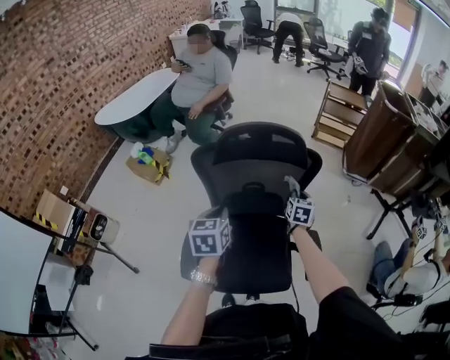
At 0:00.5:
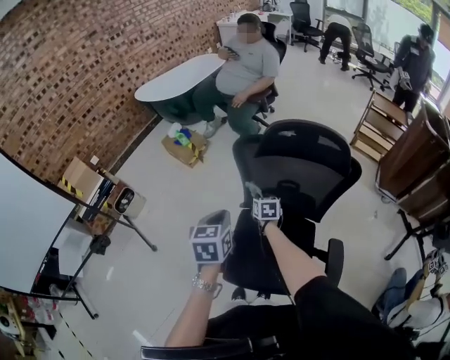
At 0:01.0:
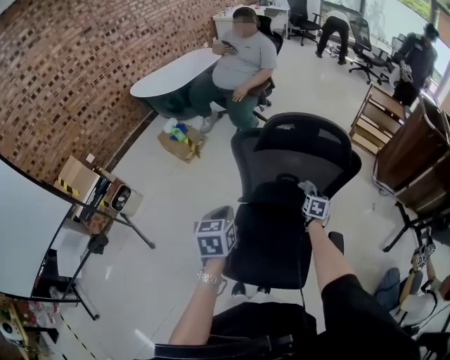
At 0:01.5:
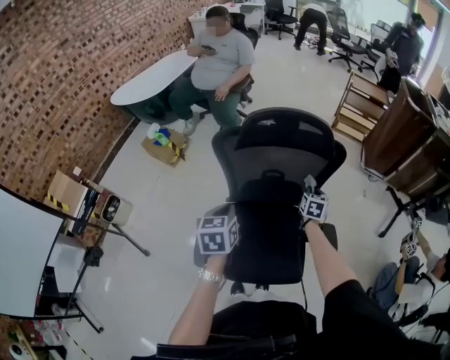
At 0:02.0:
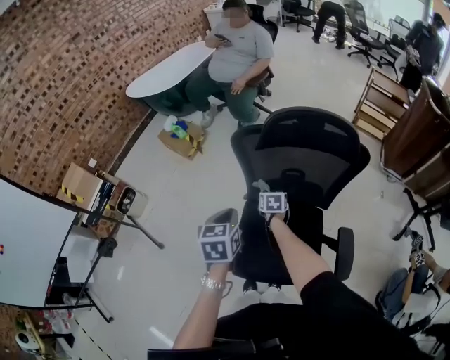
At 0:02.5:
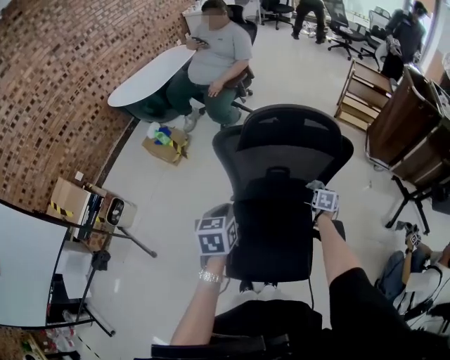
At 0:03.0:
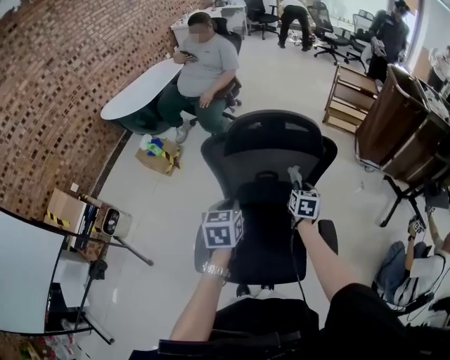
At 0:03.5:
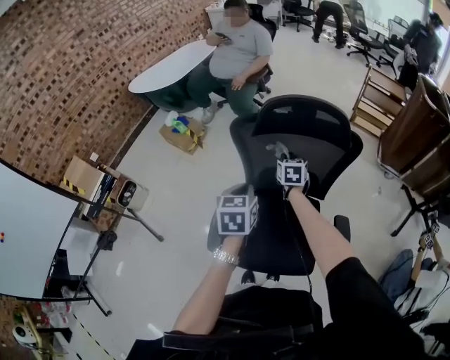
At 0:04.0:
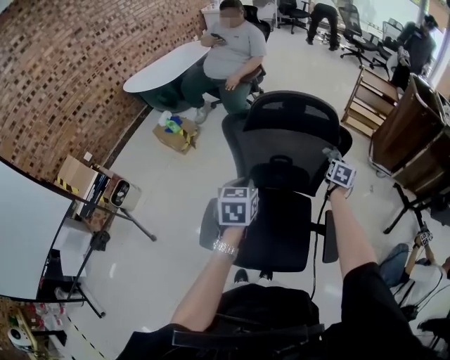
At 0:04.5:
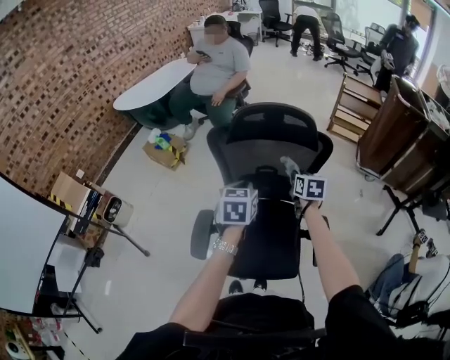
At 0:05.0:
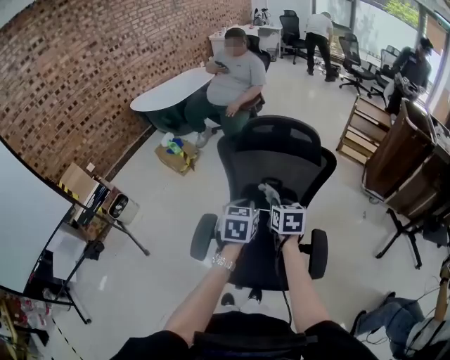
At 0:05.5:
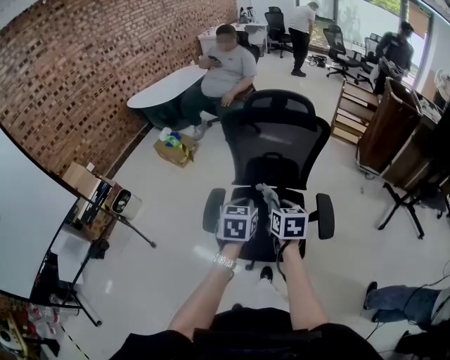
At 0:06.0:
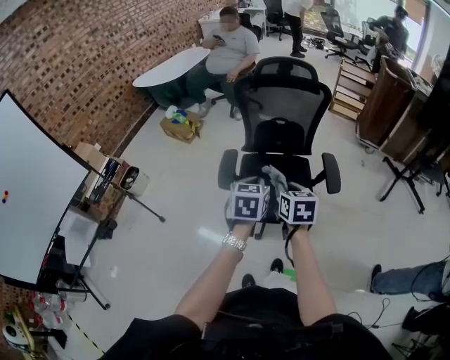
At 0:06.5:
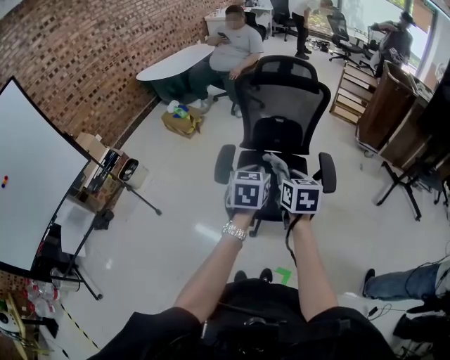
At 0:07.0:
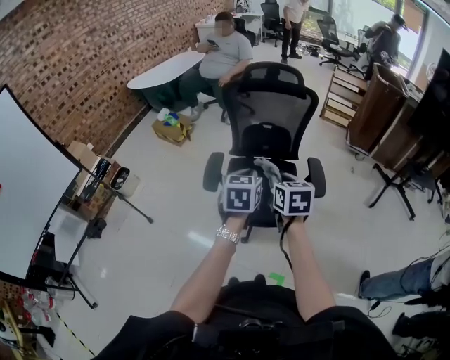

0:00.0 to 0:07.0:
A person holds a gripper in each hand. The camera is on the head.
0:00.0 to 0:02.0: The left gripper moves left and right over roughly 10 cm, changing direction 2 times, while the right gripper swings left and right, roughly 30 cm each way, with 2 reversals, and rotates about 30 degrees.
0:02.0 to 0:03.5: The left gripper moves to the right, some 5 cm; the right gripper is displaced upward by roughly 15 cm, and travels to the right and back again, roughly 30 cm each way.
0:03.5 to 0:05.0: The right gripper is displaced backward and upward by some 20 cm, and travels to the right and back again, roughly 25 cm each way; the left gripper goes some 5 cm to the right.
0:05.0 to 0:07.0: Both grippers travel together backward, about 30 cm.

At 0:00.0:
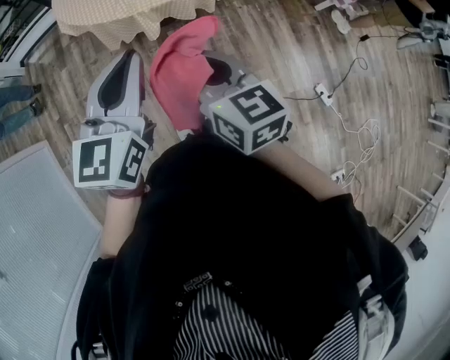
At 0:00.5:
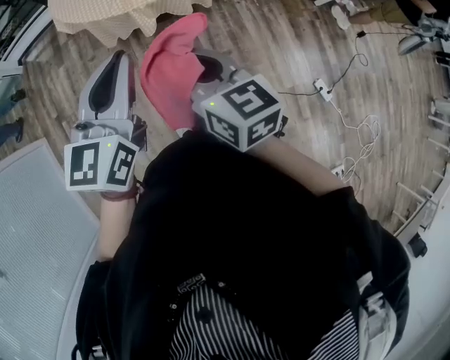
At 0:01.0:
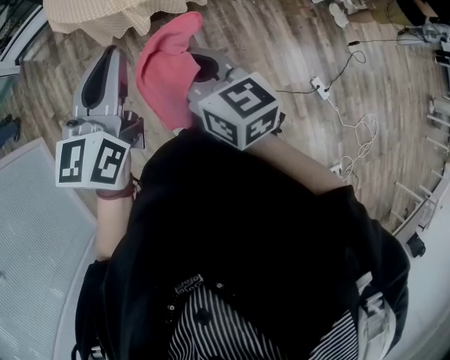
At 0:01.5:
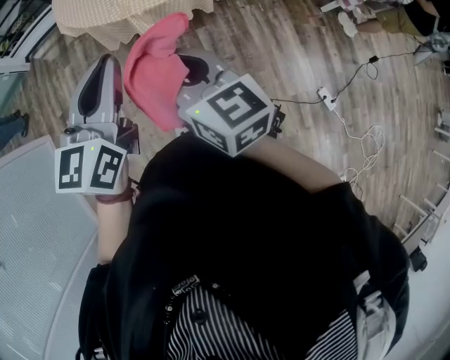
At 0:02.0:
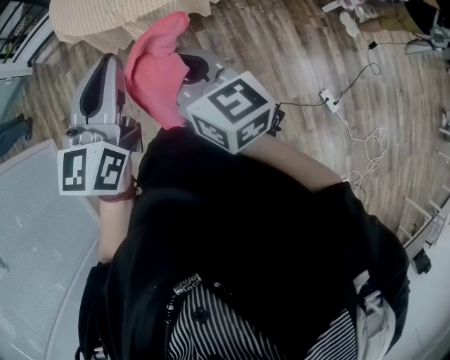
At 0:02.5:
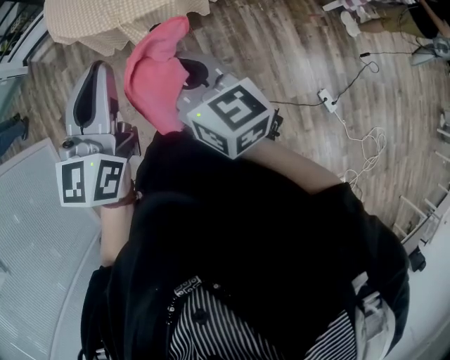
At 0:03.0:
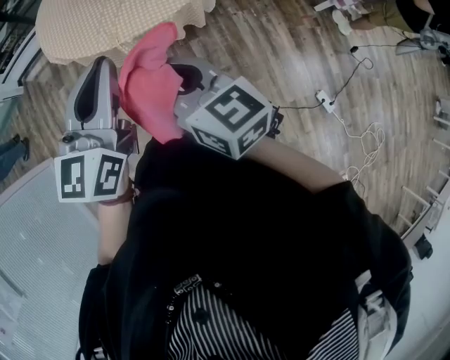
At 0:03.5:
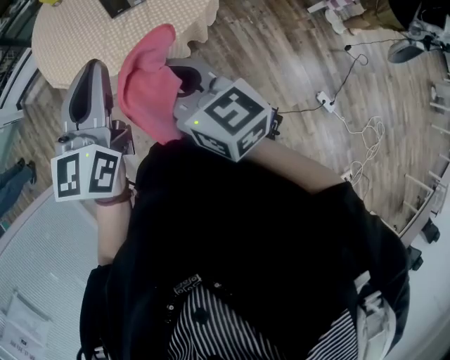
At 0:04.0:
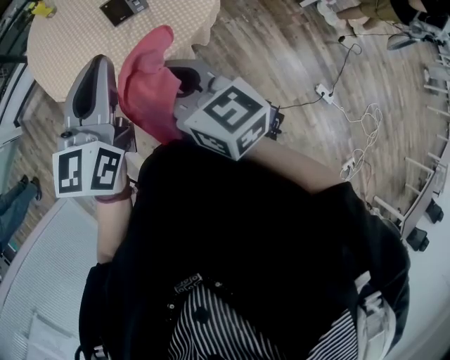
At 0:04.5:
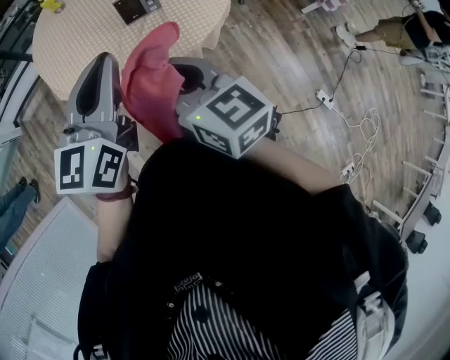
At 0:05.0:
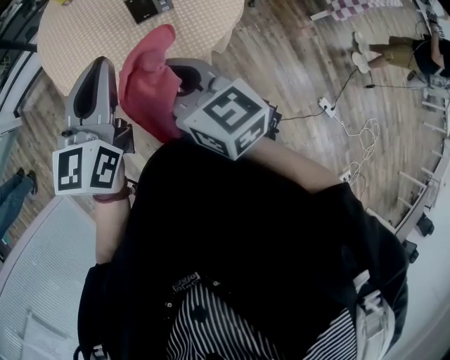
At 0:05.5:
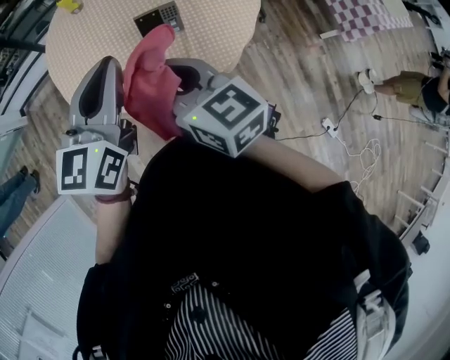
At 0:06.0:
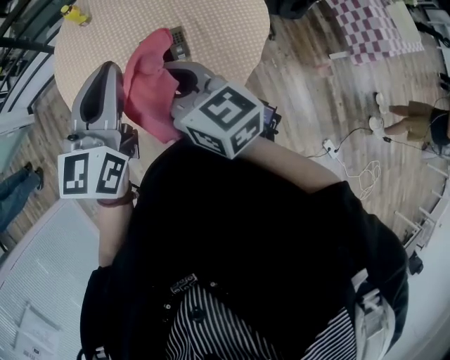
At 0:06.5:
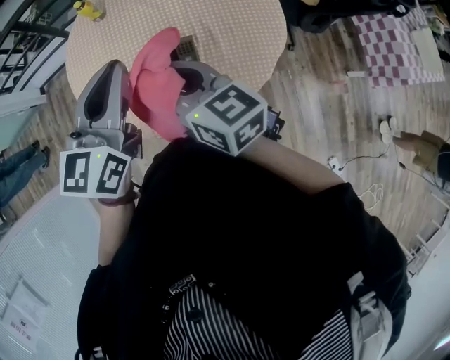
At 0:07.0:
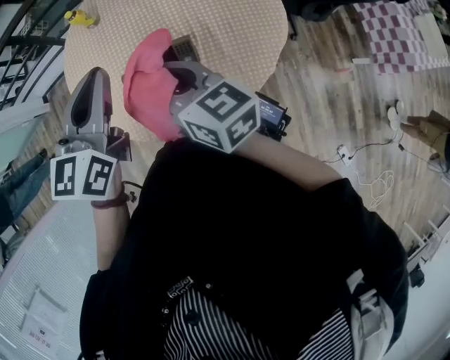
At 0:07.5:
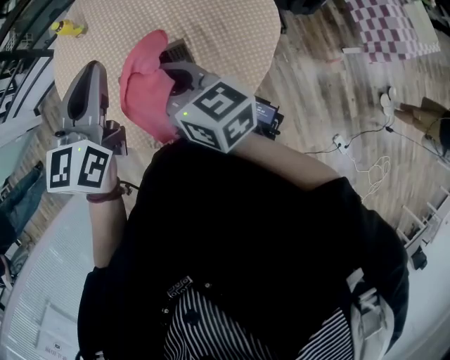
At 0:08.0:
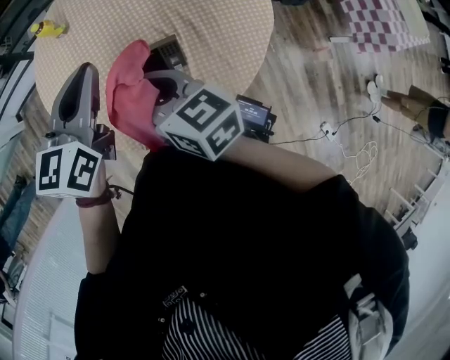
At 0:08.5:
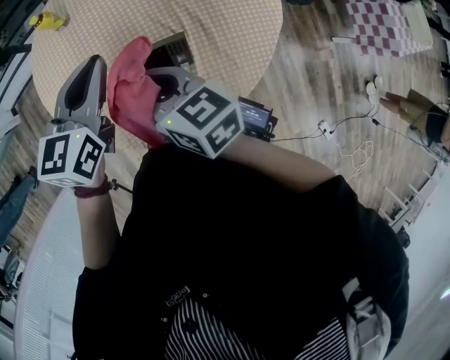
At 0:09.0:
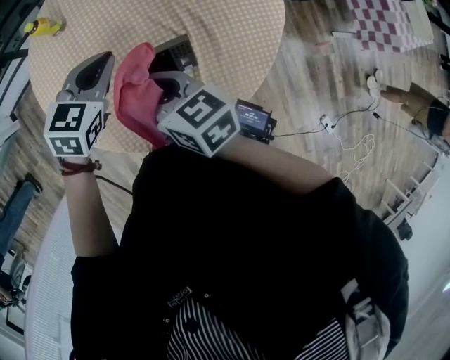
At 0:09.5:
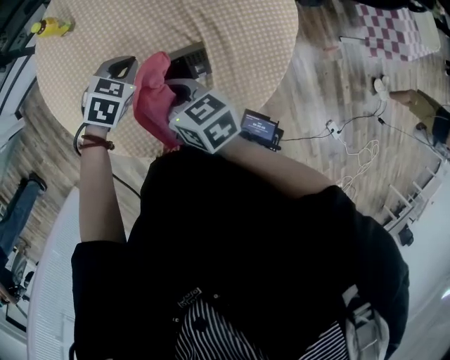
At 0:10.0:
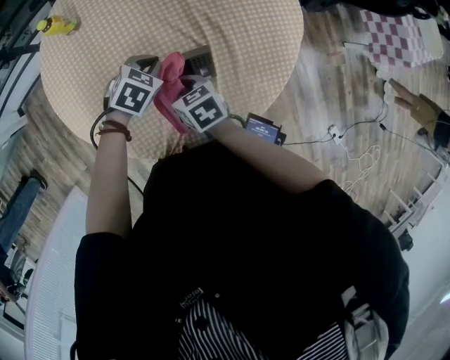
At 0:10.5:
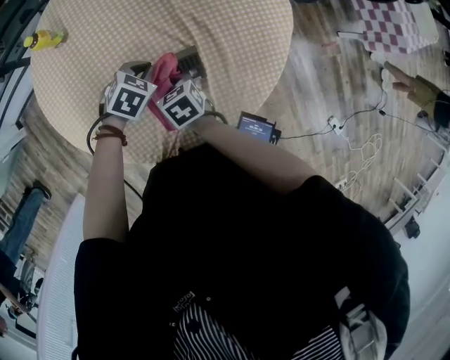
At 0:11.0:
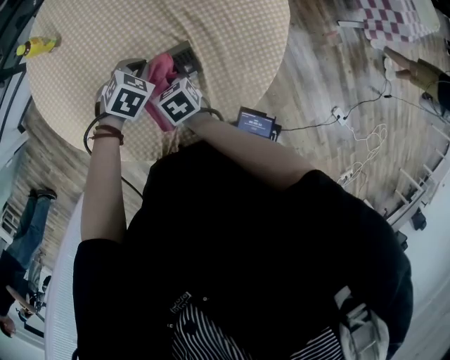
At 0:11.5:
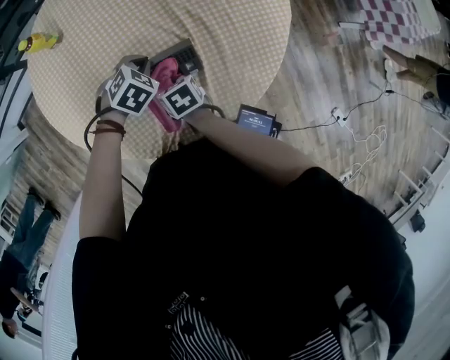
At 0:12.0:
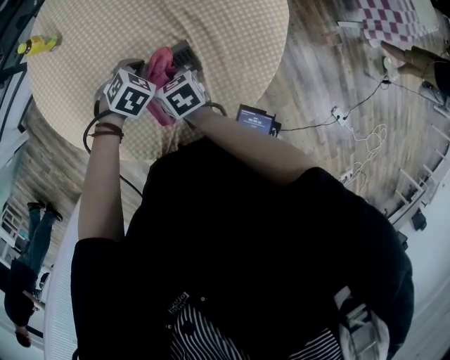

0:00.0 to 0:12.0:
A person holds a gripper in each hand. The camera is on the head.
0:00.0 to 0:02.0: The grippers both shift to the right by some 10 cm.
0:02.0 to 0:04.0: Both grippers travel together forward, some 30 cm.
0:04.0 to 0:06.0: The grippers both shift forward by about 25 cm.
0:06.0 to 0:08.0: The two grippers go approximately 20 cm forward and downward.
0:08.0 to 0:10.0: Both grippers move downward, approximately 25 cm. The left gripper angles its fingers downward, by approximately 40 degrees. Meanwhile the right gripper swivels about 30 degrees.

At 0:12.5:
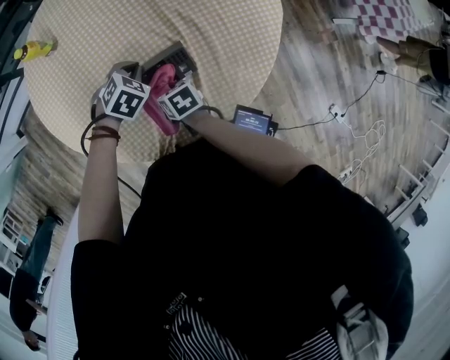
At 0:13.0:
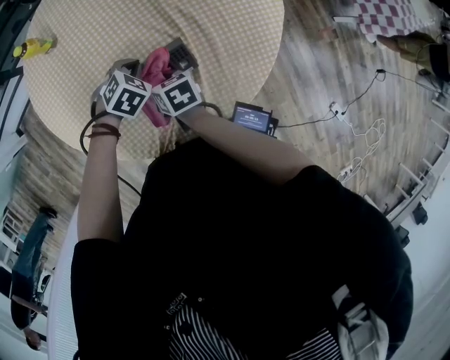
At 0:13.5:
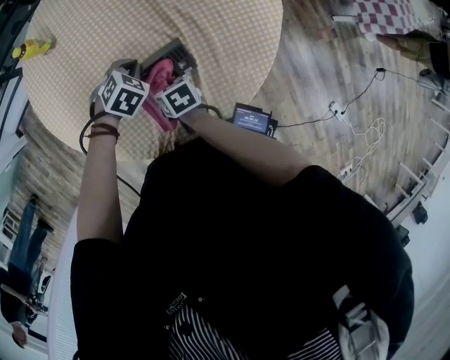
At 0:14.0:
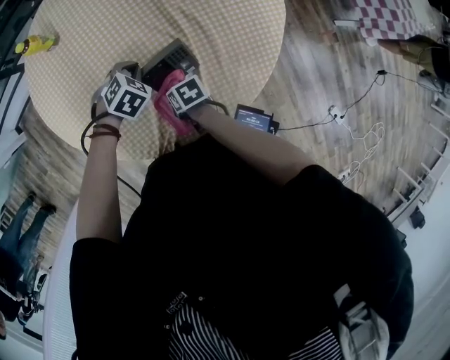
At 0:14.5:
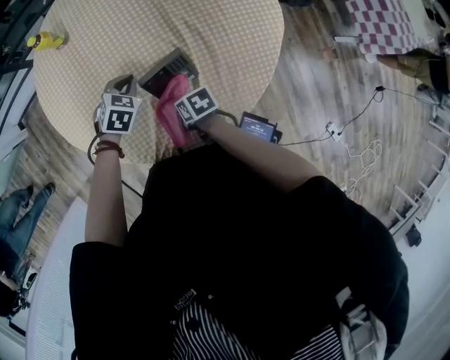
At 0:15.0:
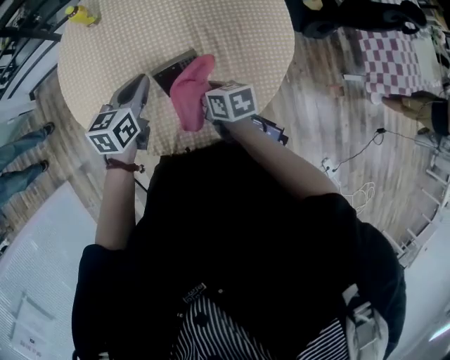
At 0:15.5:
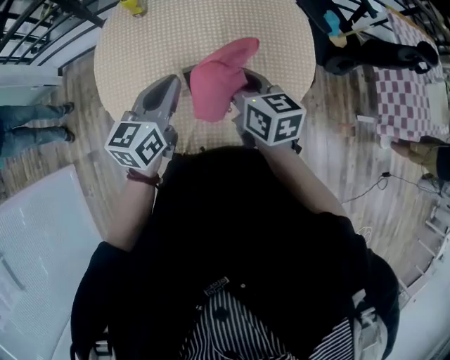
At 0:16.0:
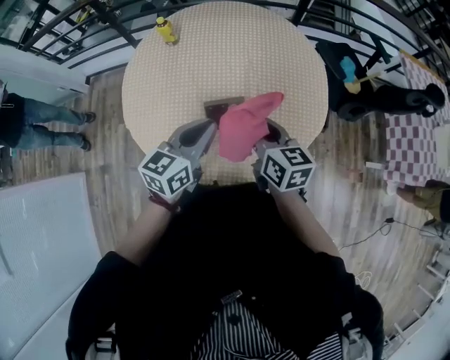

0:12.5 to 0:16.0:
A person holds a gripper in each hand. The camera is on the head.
0:12.5 to 0:14.5: The right gripper heads backward, covering some 5 cm.
0:14.5 to 0:16.0: The left gripper shifts roughly 30 cm upward and backward, and tilts its fingers roughly 50 degrees upward. Meanwhile the right gripper goes roughly 30 cm upward, and points its fingers approximately 40 degrees further upward.

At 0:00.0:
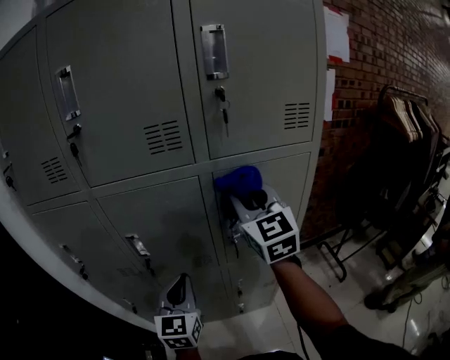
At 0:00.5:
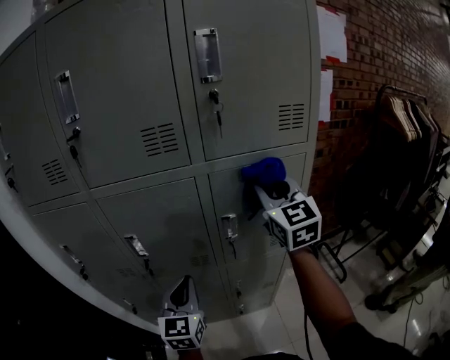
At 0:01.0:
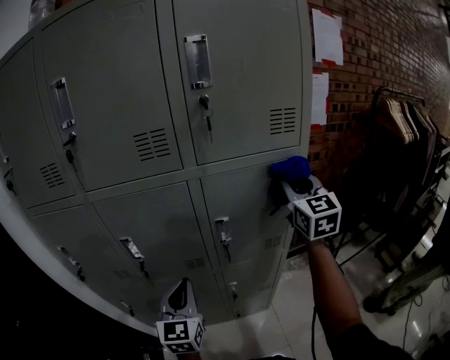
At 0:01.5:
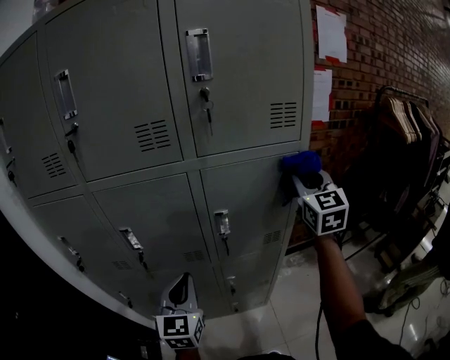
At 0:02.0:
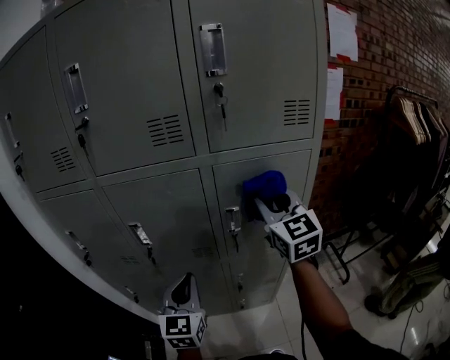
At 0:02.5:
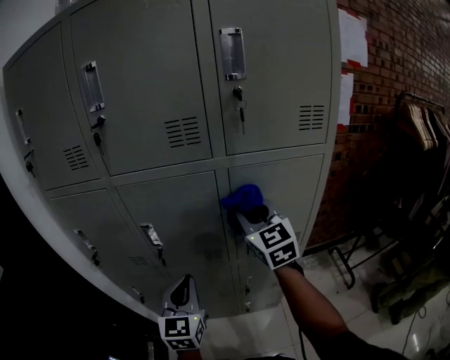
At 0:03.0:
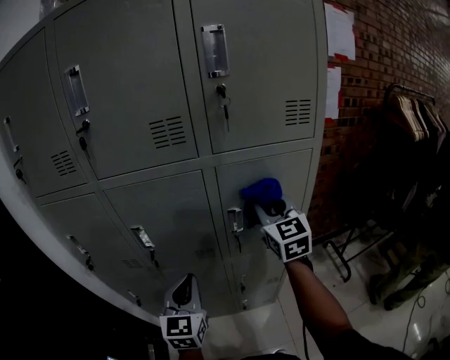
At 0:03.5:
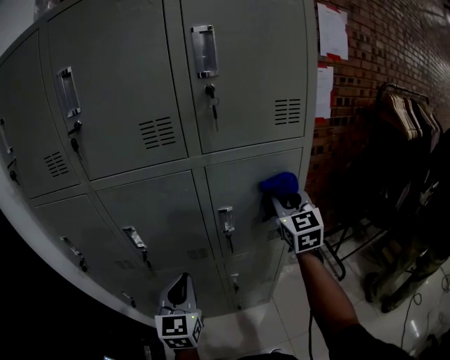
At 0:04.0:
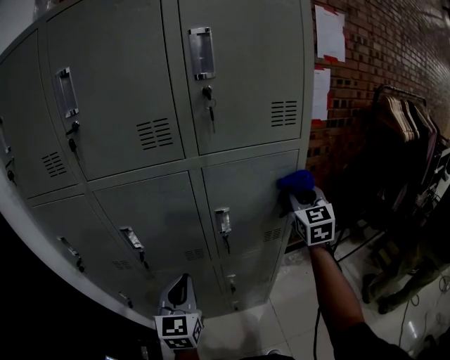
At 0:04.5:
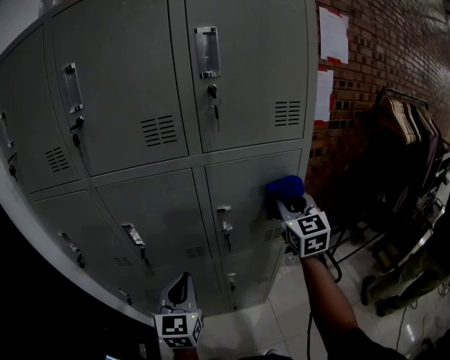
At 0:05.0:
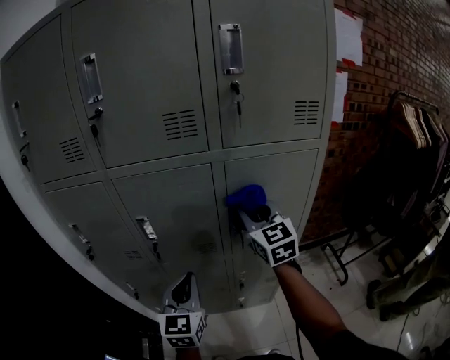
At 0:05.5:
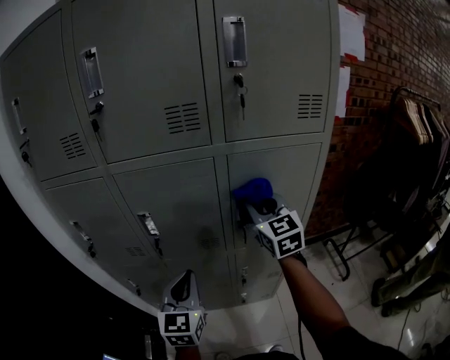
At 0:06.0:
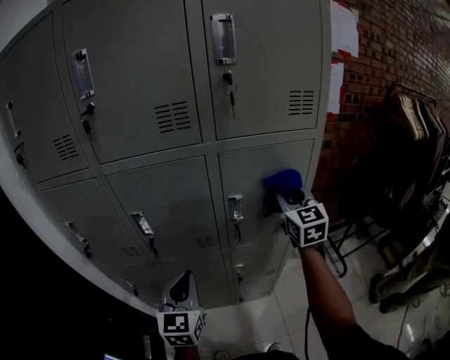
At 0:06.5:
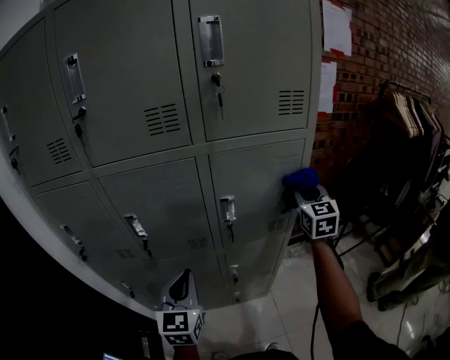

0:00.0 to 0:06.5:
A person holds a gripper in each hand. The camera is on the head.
0:00.0 to 0:02.0: The right gripper moves about 20 cm to the right and comes back.
0:02.0 to 0:04.5: The right gripper goes left and right, about 25 cm each way, reversing 2 times.
0:04.5 to 0:06.5: The right gripper travels to the left and back again, about 15 cm each way.
